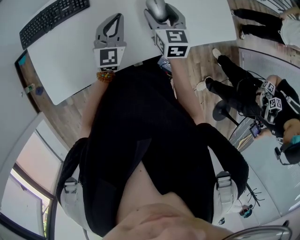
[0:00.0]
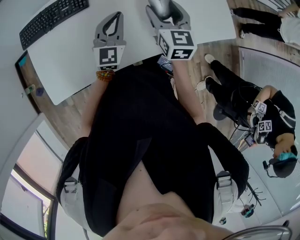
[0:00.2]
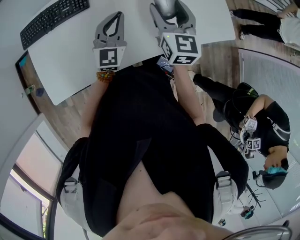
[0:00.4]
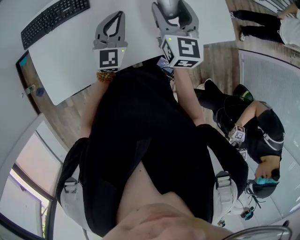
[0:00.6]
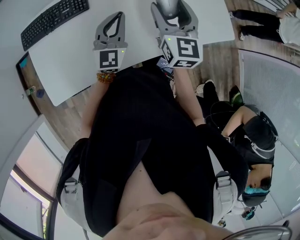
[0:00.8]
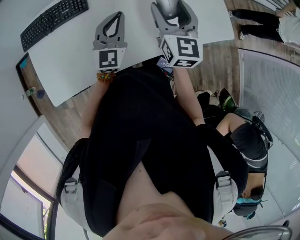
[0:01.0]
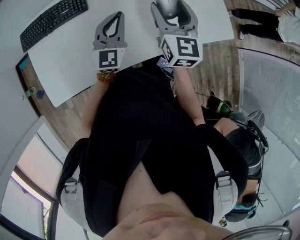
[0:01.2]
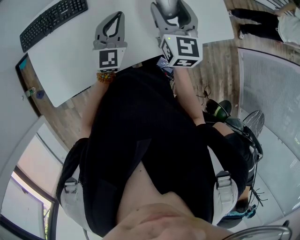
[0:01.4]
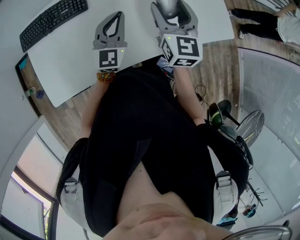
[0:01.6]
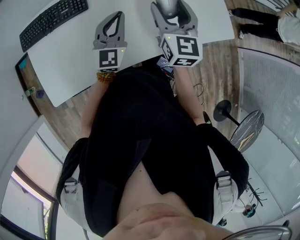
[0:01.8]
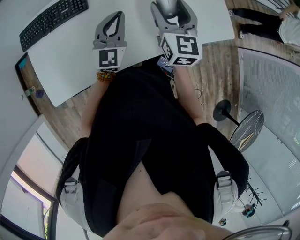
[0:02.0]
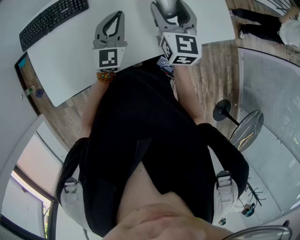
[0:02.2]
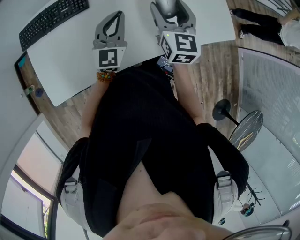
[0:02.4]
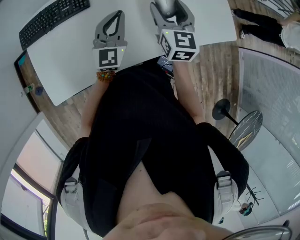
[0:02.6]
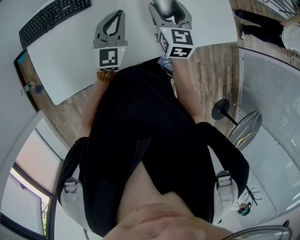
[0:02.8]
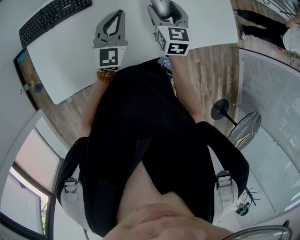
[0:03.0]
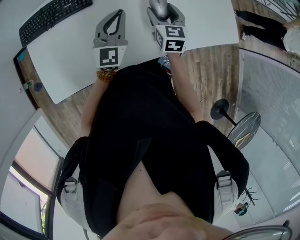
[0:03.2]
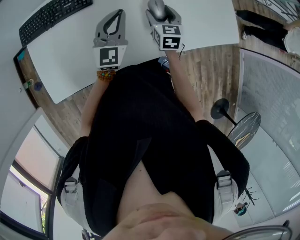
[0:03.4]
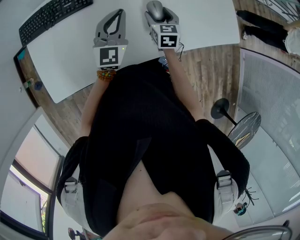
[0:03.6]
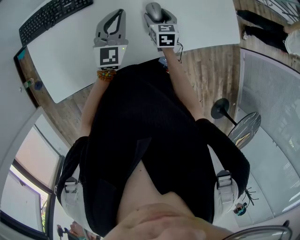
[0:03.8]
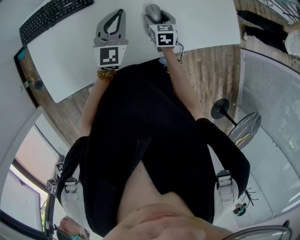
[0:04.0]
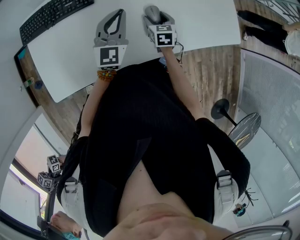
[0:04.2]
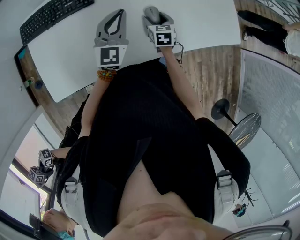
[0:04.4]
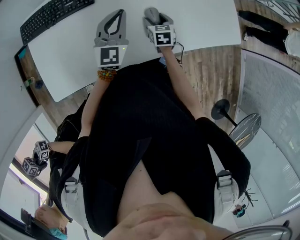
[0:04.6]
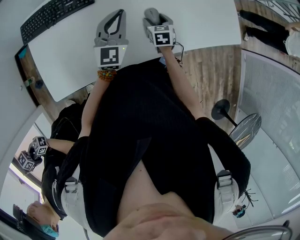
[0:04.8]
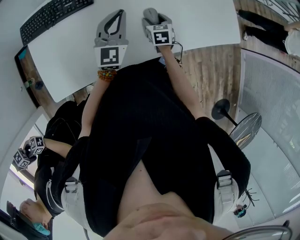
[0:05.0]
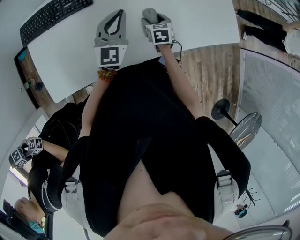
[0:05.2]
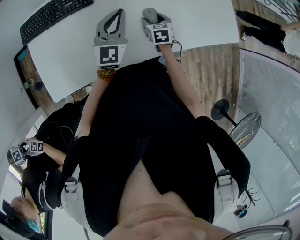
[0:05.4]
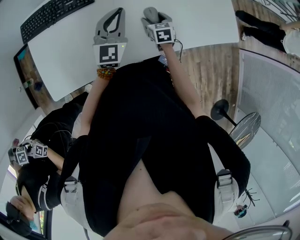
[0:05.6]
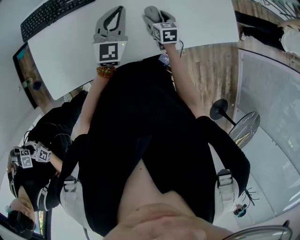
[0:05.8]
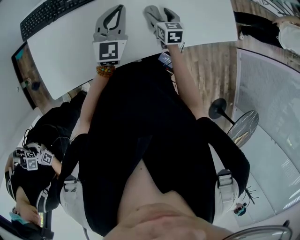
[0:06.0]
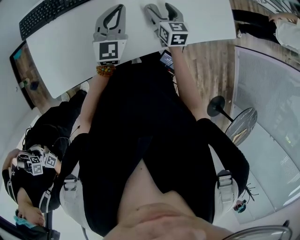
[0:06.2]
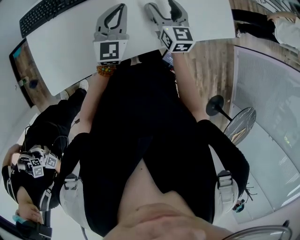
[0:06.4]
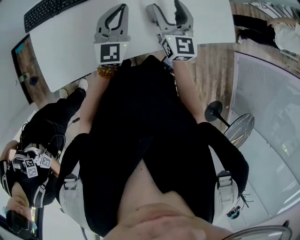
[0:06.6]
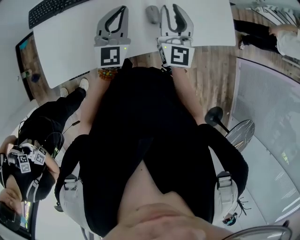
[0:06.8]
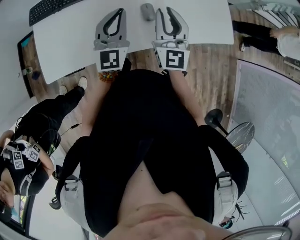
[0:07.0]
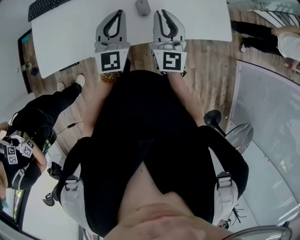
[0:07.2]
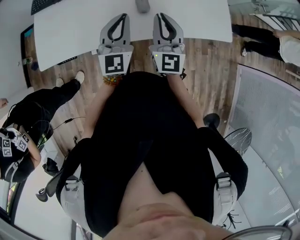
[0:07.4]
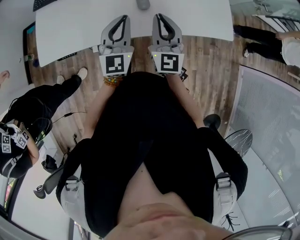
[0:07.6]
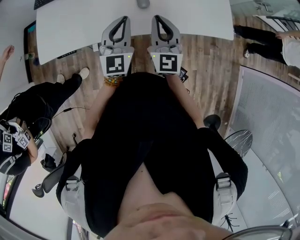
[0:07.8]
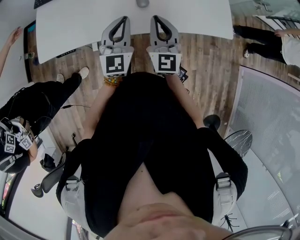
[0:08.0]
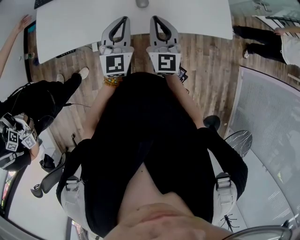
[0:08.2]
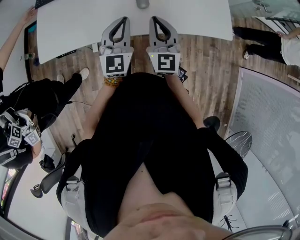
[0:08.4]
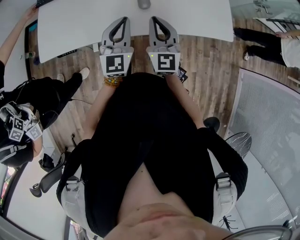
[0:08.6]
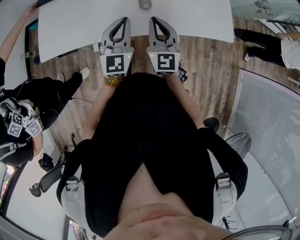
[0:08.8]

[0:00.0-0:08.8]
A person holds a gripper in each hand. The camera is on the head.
0.0 to 1.4 s: The right gripper moves upward, about 10 cm.
1.4 to 3.0 s: The right gripper heads downward, covering roughly 10 cm.
3.0 to 4.4 s: The right gripper heads downward, covering about 15 cm, and rotates approximately 20 degrees.
4.4 to 5.8 s: There are only small adjustments of the grippers.
5.8 to 7.4 s: The left gripper is displaced backward, to the right and upward by some 20 cm; the right gripper heads upward and backward, covering about 30 cm, tilts its fingers some 50 degrees upward, and closes.
7.4 to 8.8 s: The right gripper ends up roughly 5 cm from where it was.

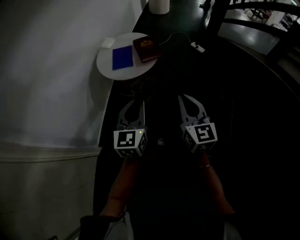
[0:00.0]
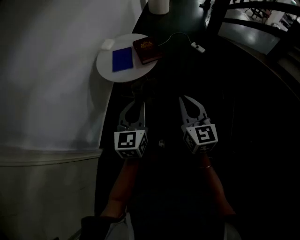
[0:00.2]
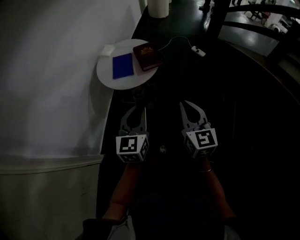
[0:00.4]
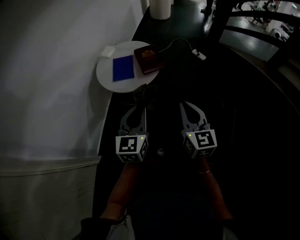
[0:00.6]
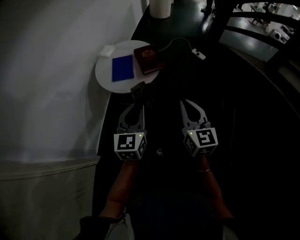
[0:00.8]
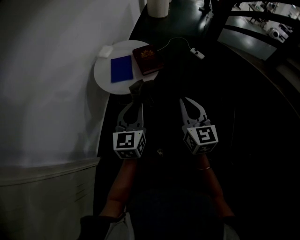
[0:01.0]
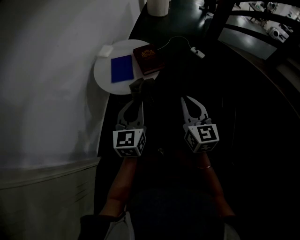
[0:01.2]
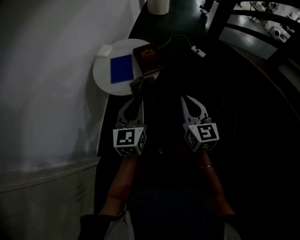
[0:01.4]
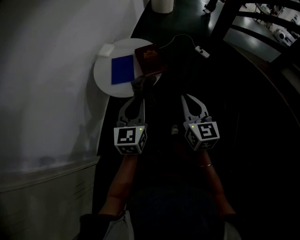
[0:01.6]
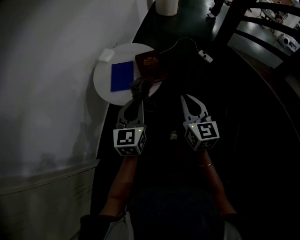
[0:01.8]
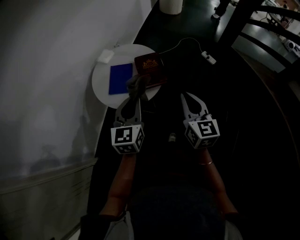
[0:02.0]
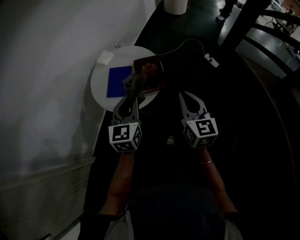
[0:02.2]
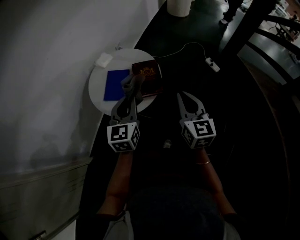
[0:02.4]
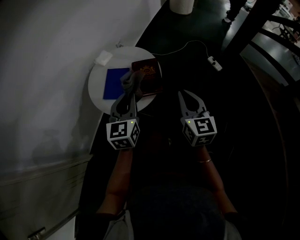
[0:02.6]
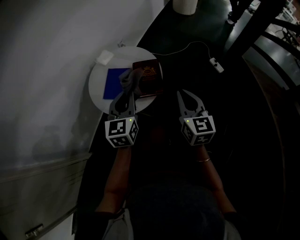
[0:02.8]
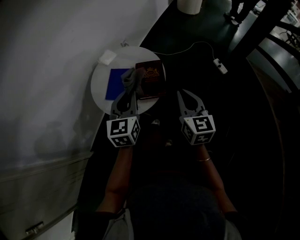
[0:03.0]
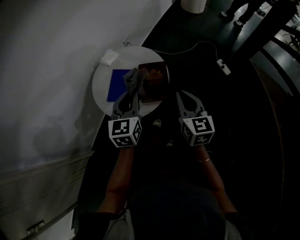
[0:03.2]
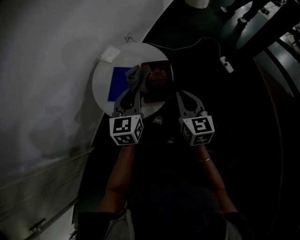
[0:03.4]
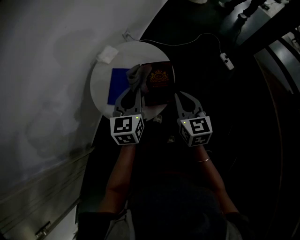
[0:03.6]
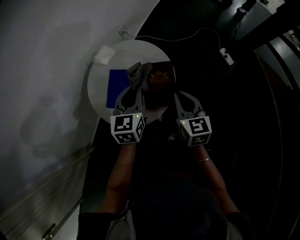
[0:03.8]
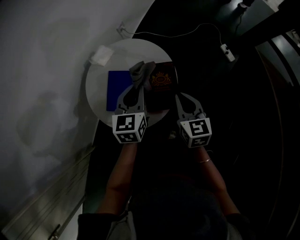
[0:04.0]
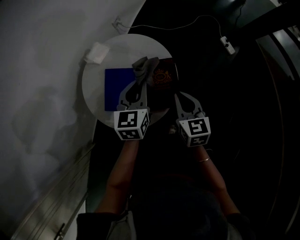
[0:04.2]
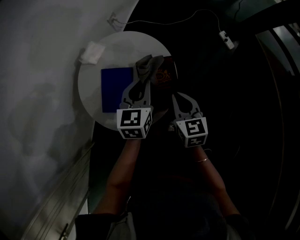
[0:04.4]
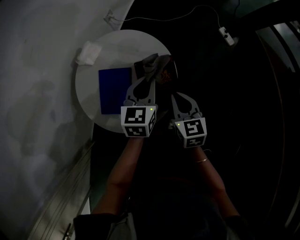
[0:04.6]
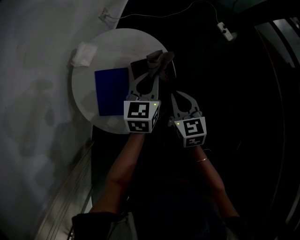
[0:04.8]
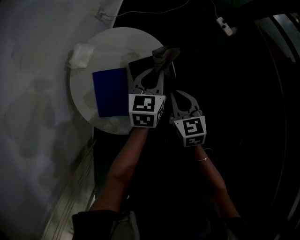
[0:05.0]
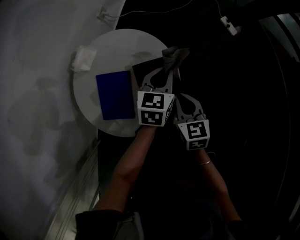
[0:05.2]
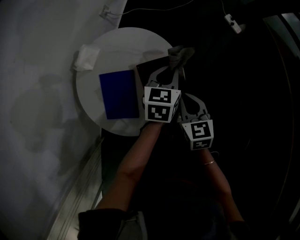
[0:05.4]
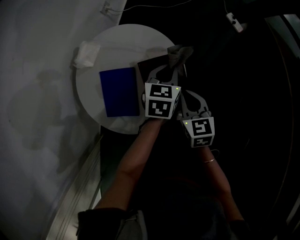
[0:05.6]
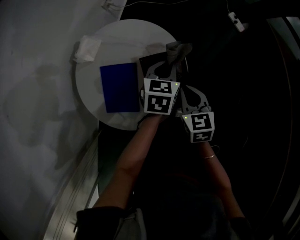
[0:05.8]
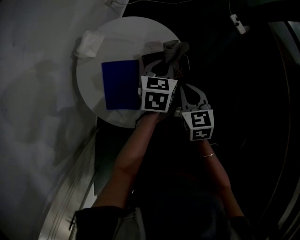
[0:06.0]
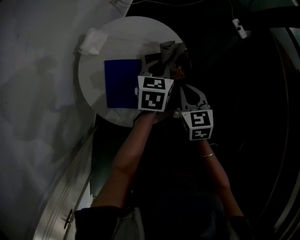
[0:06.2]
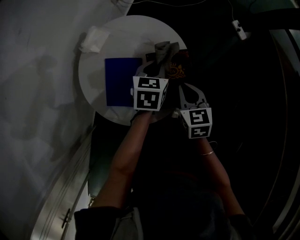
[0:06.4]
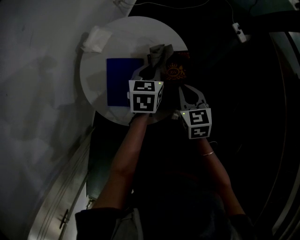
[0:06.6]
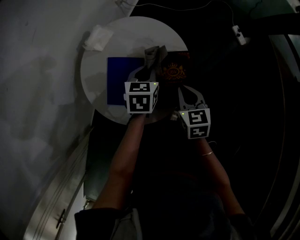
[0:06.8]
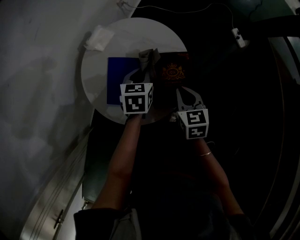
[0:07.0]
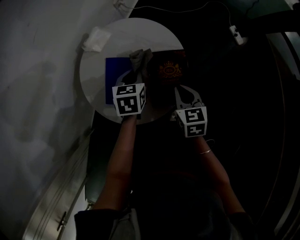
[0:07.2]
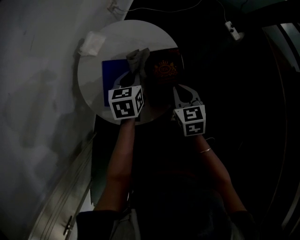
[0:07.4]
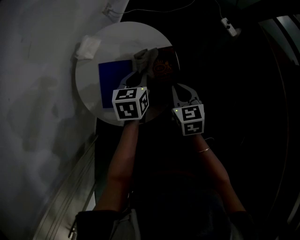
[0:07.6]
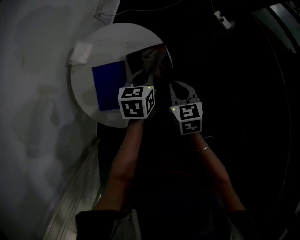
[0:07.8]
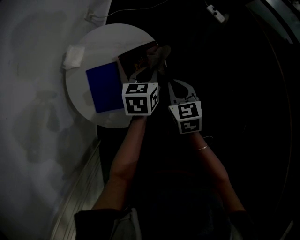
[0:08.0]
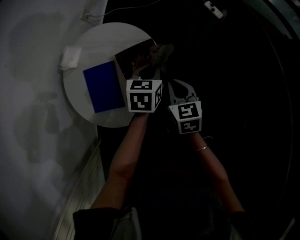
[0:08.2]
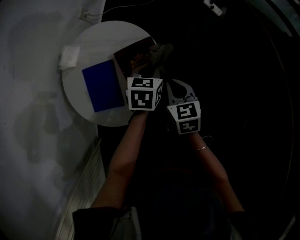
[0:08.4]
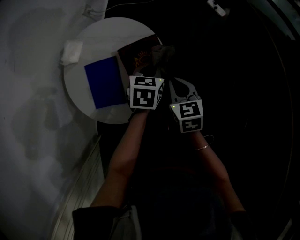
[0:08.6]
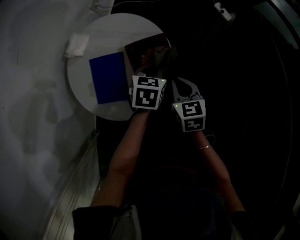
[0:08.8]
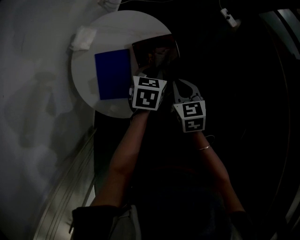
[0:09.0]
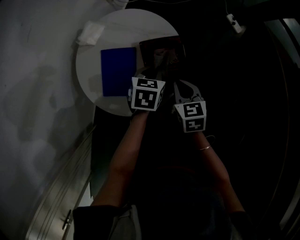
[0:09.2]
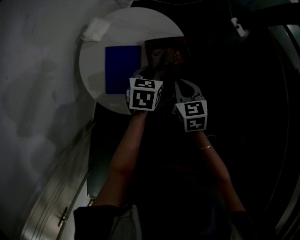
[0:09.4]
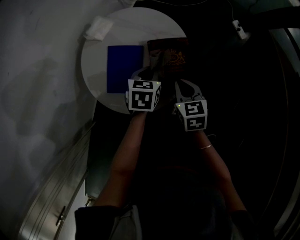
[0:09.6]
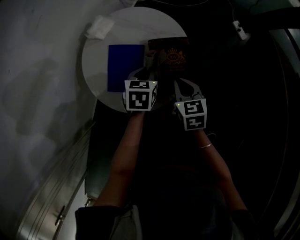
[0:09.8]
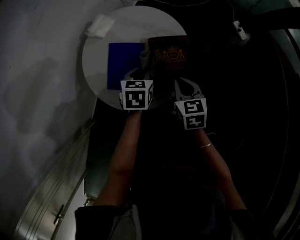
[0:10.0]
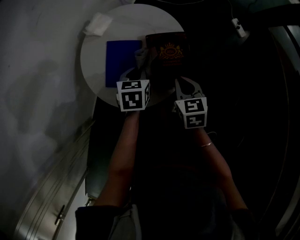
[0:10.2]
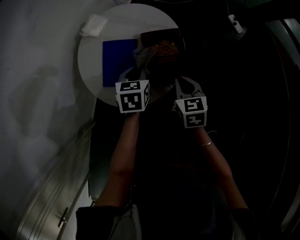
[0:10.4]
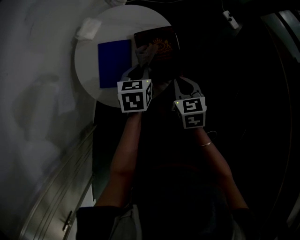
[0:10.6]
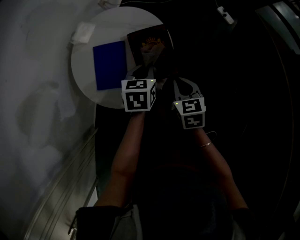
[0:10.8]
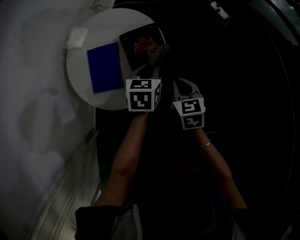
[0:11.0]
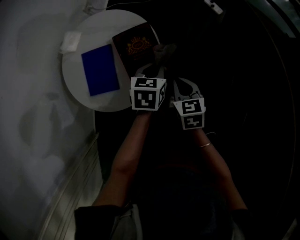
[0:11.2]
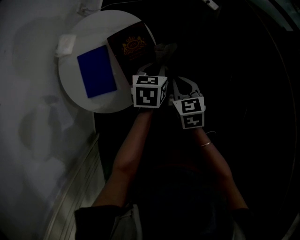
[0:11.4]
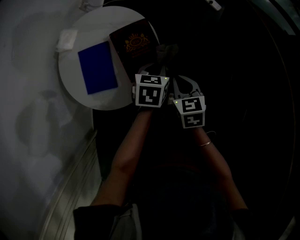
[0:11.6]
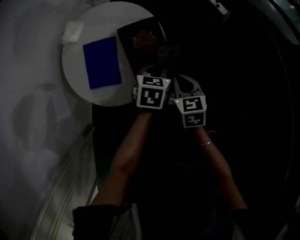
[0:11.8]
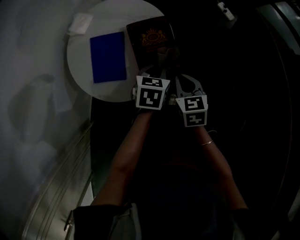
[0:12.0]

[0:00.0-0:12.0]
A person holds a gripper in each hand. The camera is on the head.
0.0 to 1.6 s: The grippers both shift forward by roughly 15 cm.
1.6 to 3.0 s: Both grippers travel together forward, some 20 cm.
3.0 to 4.4 s: The right gripper goes about 20 cm downward, forward and to the left, and changes its angle by approximately 20 degrees. The left gripper travels forward and downward by about 20 cm.
4.4 to 6.0 s: The right gripper shifts approximately 5 cm downward. Meanwhile the left gripper goes some 10 cm downward and forward, and changes its angle by some 20 degrees.
6.0 to 7.6 s: The left gripper goes approximately 5 cm to the left.
7.6 to 9.0 s: The left gripper heads to the right, covering roughly 5 cm.
9.0 to 10.4 s: The left gripper shifts about 10 cm to the left.
10.4 to 12.0 s: The left gripper travels to the right by roughly 15 cm.

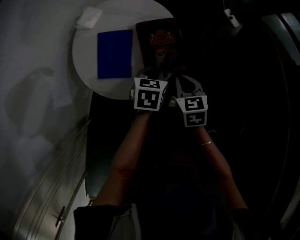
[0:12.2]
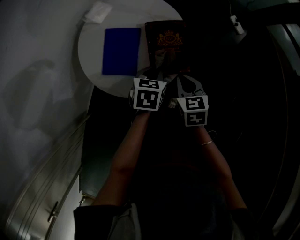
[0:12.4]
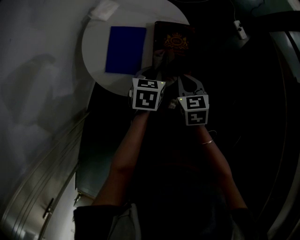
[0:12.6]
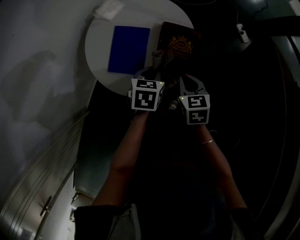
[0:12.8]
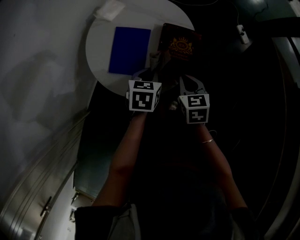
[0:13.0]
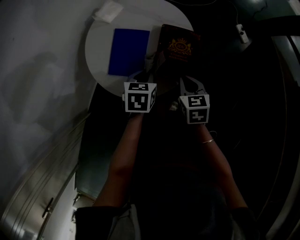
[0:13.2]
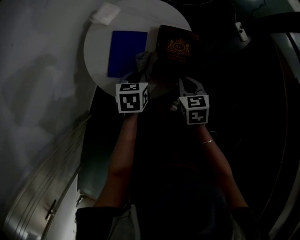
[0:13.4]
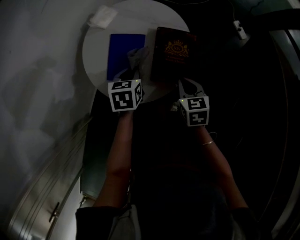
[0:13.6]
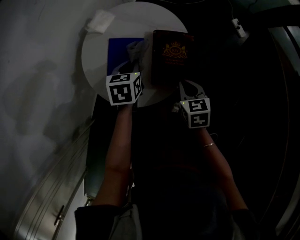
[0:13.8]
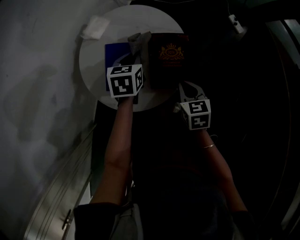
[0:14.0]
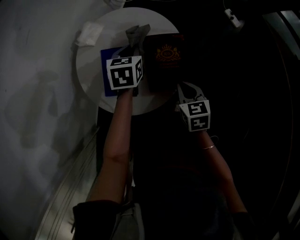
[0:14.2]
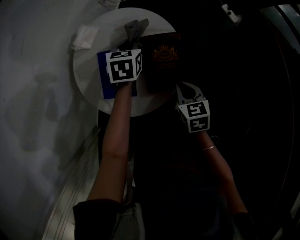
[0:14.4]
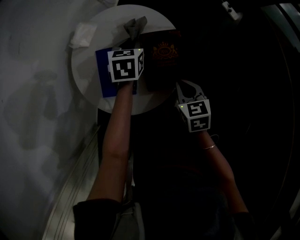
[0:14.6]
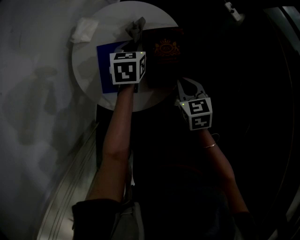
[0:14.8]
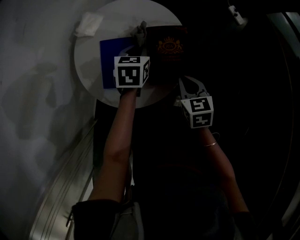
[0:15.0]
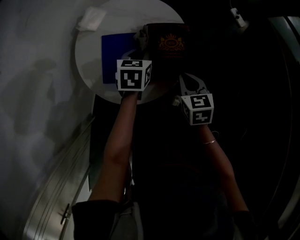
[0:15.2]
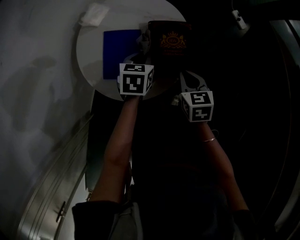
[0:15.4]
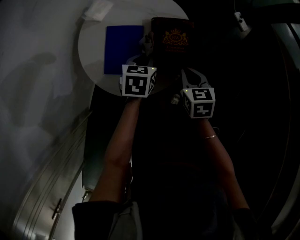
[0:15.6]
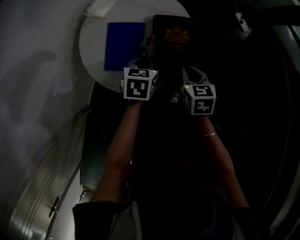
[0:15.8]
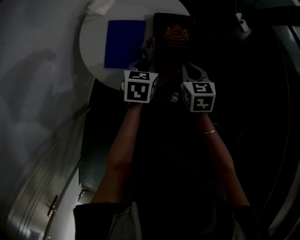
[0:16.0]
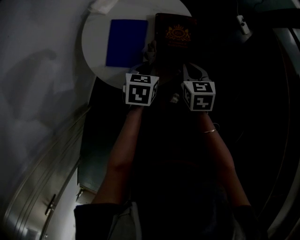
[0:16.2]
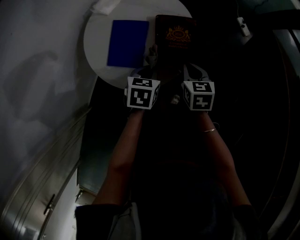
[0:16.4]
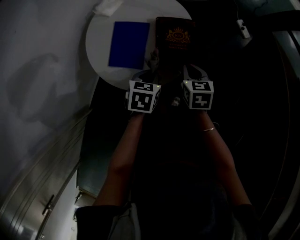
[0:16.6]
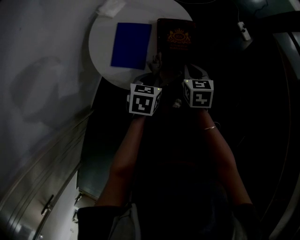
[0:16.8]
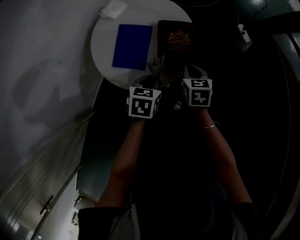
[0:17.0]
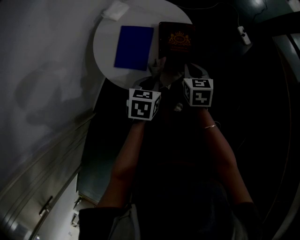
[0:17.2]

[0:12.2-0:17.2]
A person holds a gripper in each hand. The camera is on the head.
12.2 to 13.8 s: The left gripper goes approximately 15 cm to the left and forward.
13.8 to 15.6 s: The left gripper is displaced to the right by roughly 5 cm, and moves some 10 cm forward and comes back.
15.6 to 17.2 s: The left gripper heads backward, covering roughly 10 cm.
